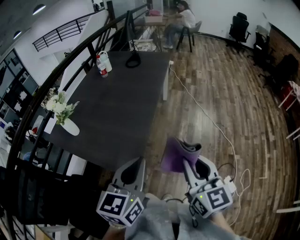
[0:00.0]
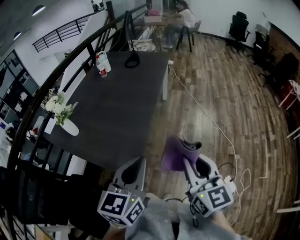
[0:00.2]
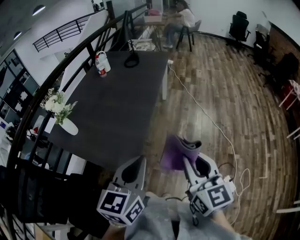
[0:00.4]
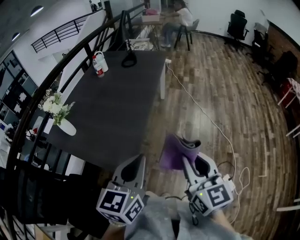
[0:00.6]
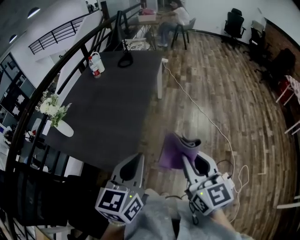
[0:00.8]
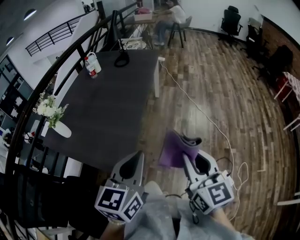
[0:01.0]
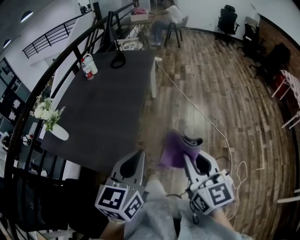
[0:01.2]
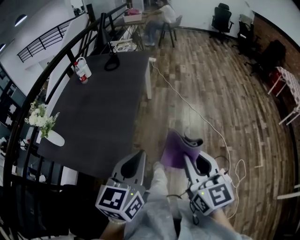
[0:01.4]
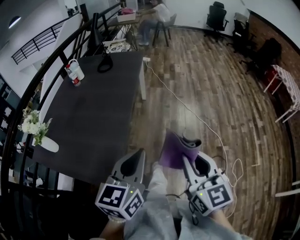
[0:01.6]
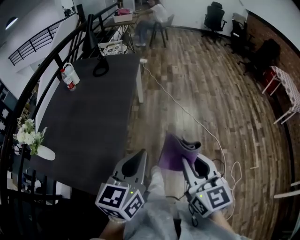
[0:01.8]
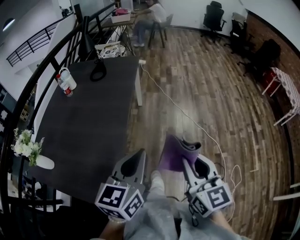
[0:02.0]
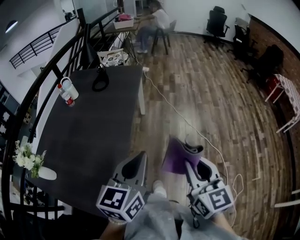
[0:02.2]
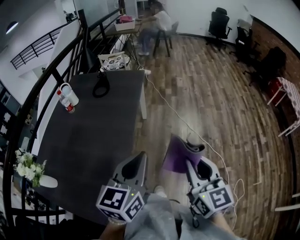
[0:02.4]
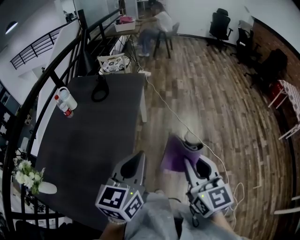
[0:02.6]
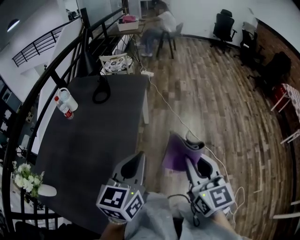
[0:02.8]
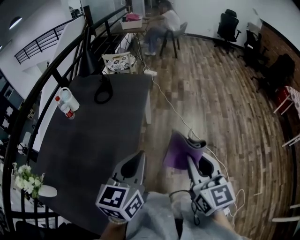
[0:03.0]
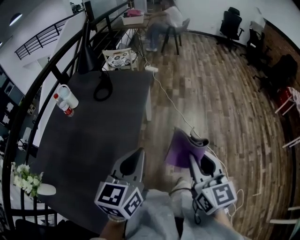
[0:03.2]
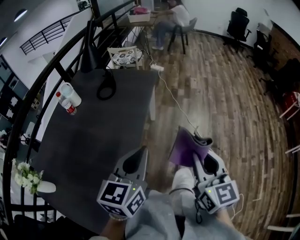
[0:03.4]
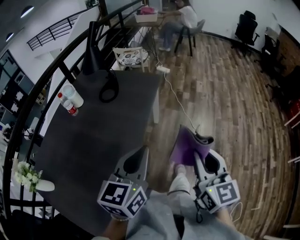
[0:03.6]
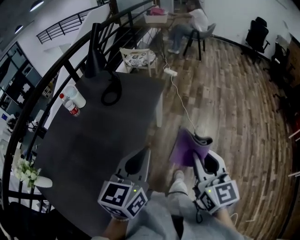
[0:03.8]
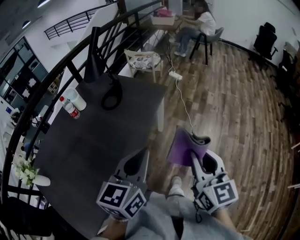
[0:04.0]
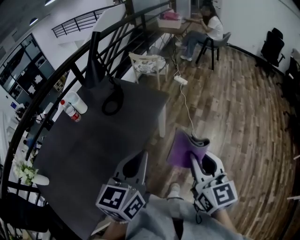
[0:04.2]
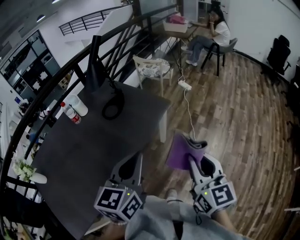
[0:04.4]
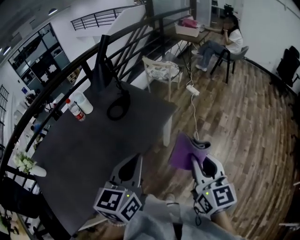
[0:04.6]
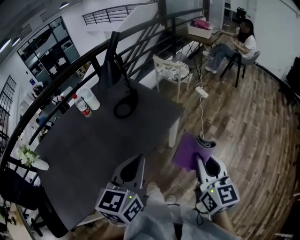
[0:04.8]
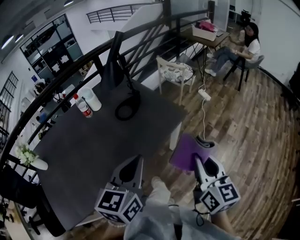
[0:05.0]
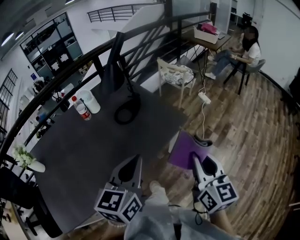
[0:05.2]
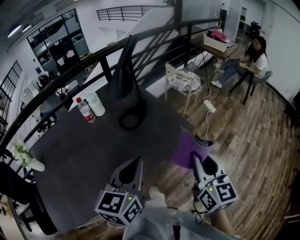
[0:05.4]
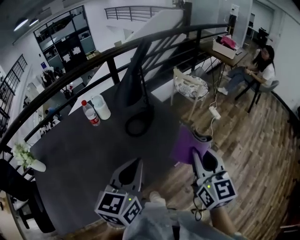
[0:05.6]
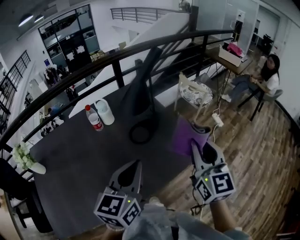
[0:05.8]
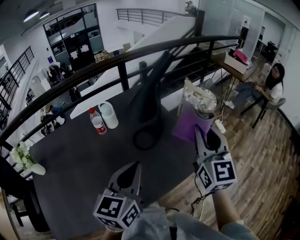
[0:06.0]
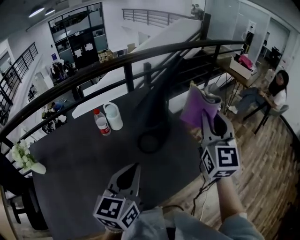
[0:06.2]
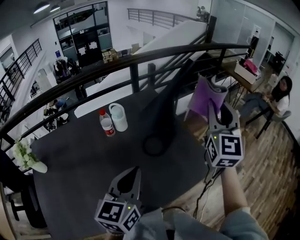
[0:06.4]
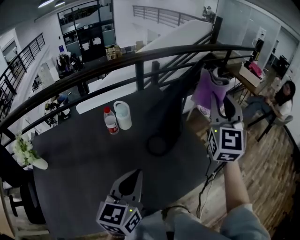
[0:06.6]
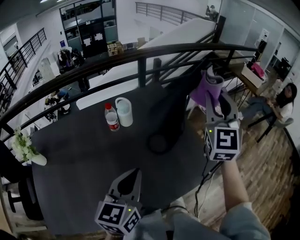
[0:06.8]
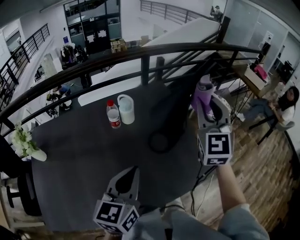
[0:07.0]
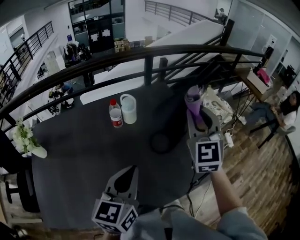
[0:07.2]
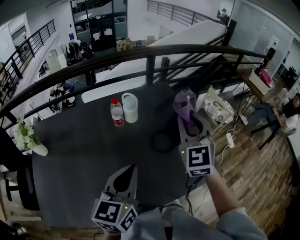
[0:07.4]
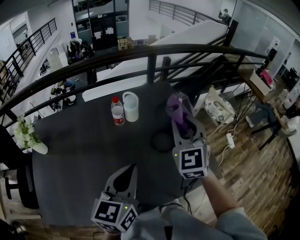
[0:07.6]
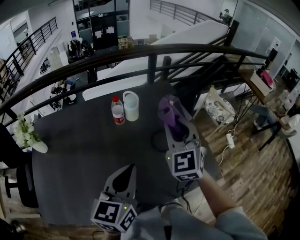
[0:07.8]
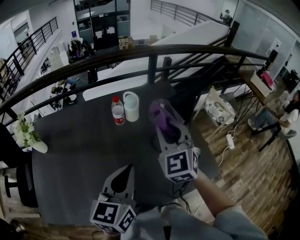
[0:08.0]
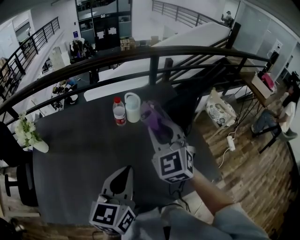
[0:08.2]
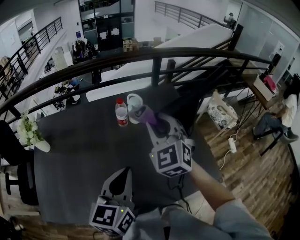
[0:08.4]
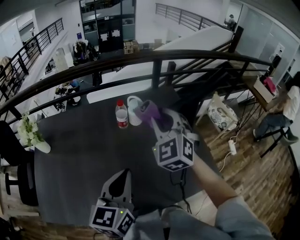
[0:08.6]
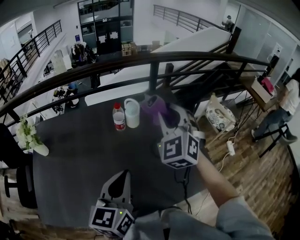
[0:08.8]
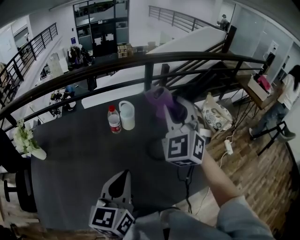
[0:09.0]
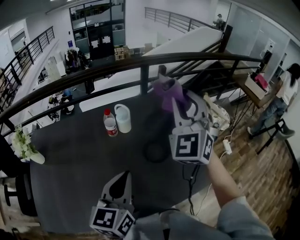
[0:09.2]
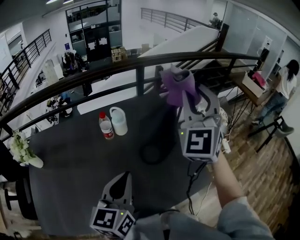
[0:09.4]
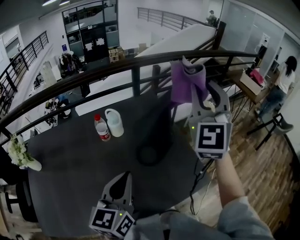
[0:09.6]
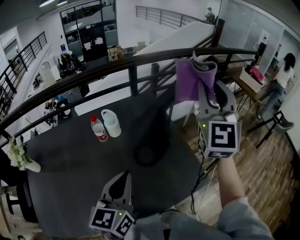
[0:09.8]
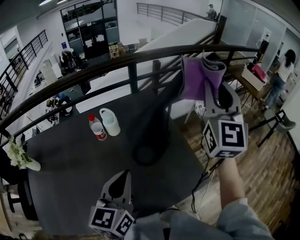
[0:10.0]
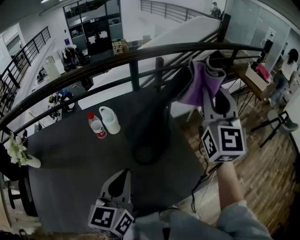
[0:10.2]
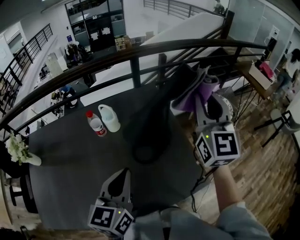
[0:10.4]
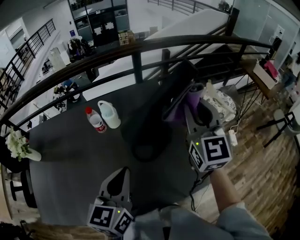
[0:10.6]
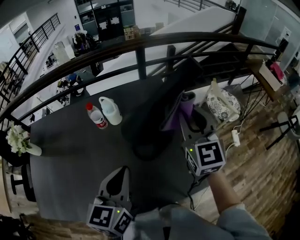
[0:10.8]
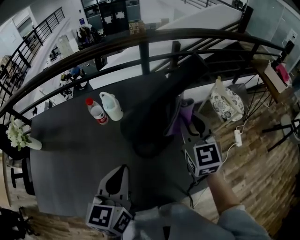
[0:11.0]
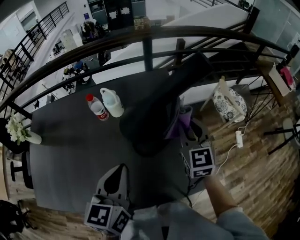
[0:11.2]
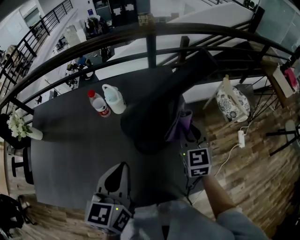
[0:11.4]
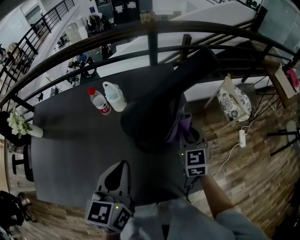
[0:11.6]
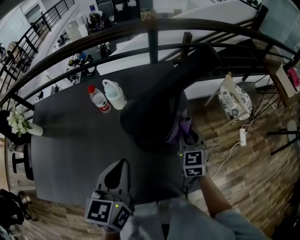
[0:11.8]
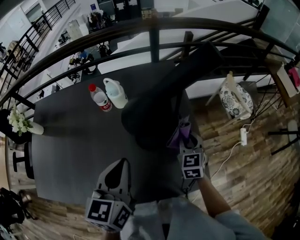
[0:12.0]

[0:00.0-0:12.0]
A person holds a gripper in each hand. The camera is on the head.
0:00.0 to 0:01.6: The right gripper travels to the right by roughly 10 cm; the left gripper is displaced to the right and forward by some 10 cm.
0:01.6 to 0:03.0: The grippers both shift forward by some 35 cm.
0:03.0 to 0:04.4: The two grippers go approximately 25 cm forward. The right gripper turns by some 20 degrees. The left gripper rotates approximately 30 degrees.
0:04.4 to 0:06.0: The left gripper travels forward and to the left by approximately 25 cm, and swivels some 20 degrees. The right gripper moves forward, some 40 cm, and turns by roughly 20 degrees.
0:06.0 to 0:07.6: The right gripper travels to the left and forward by about 20 cm, and turns by roughly 30 degrees, while the left gripper shifts about 10 cm to the left.
0:07.6 to 0:09.0: The right gripper travels upward by about 10 cm, moves about 10 cm to the left and comes back, and swivels roughly 20 degrees.
0:09.0 to 0:10.4: The right gripper is displaced to the right by some 20 cm, and rotates roughly 40 degrees, while the left gripper travels to the right and forward by some 10 cm.
0:10.4 to 0:12.0: The right gripper is displaced downward by about 35 cm, and tips its fingers downward by approximately 40 degrees.

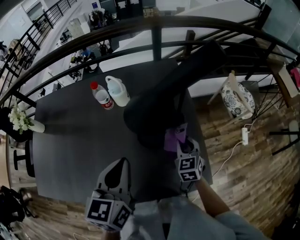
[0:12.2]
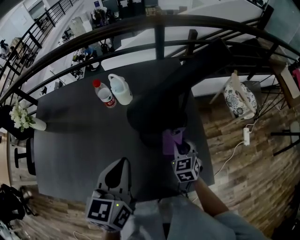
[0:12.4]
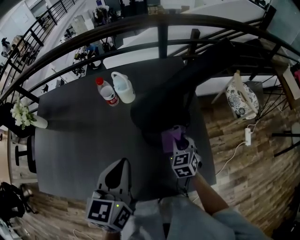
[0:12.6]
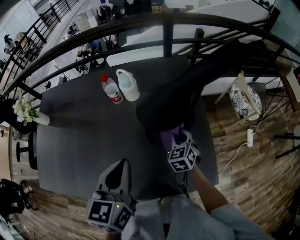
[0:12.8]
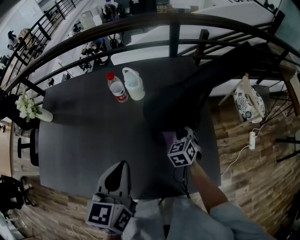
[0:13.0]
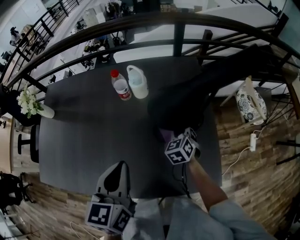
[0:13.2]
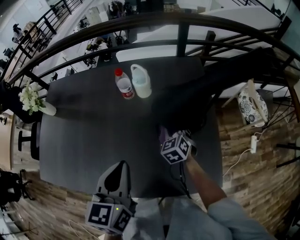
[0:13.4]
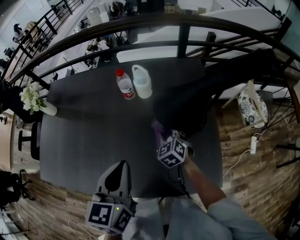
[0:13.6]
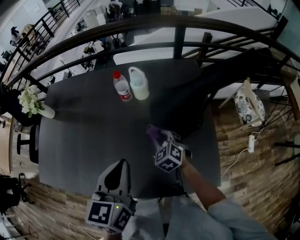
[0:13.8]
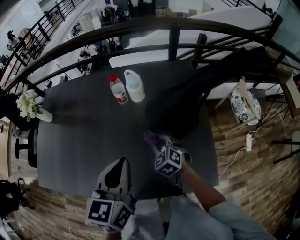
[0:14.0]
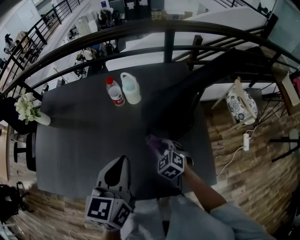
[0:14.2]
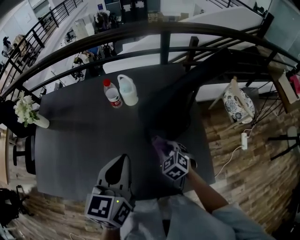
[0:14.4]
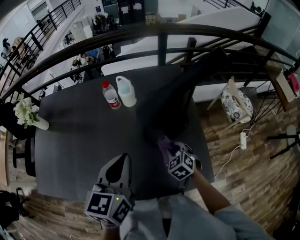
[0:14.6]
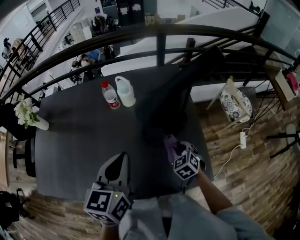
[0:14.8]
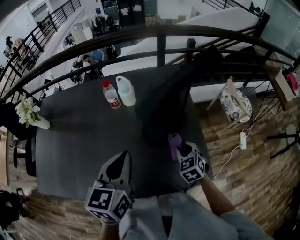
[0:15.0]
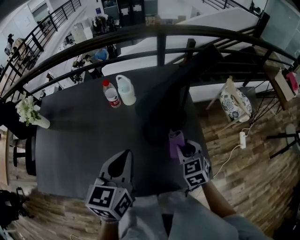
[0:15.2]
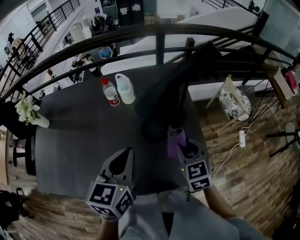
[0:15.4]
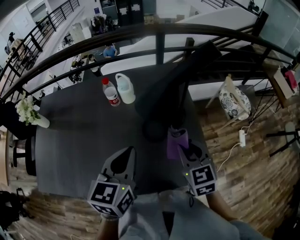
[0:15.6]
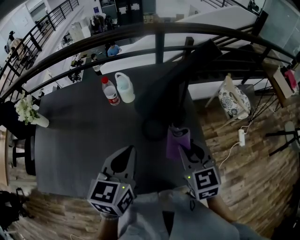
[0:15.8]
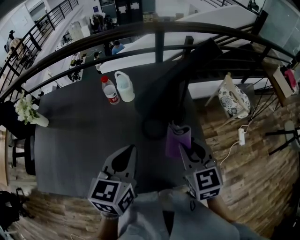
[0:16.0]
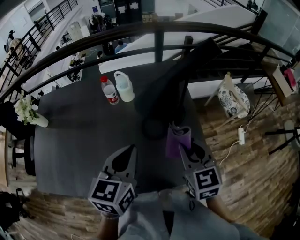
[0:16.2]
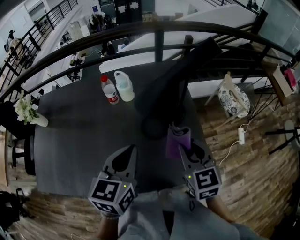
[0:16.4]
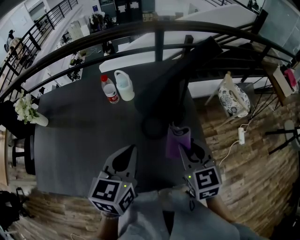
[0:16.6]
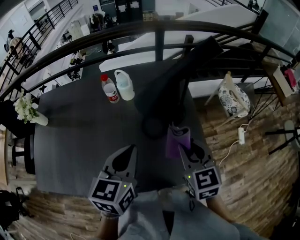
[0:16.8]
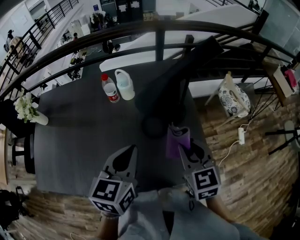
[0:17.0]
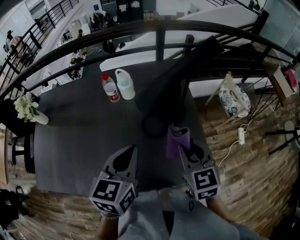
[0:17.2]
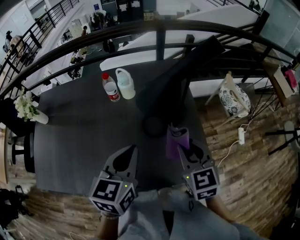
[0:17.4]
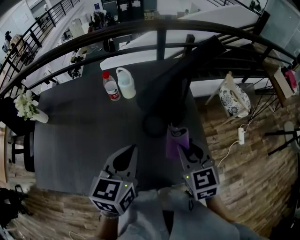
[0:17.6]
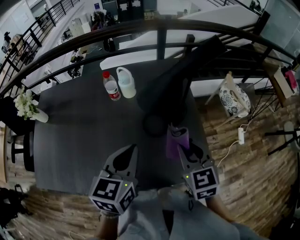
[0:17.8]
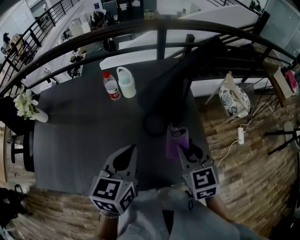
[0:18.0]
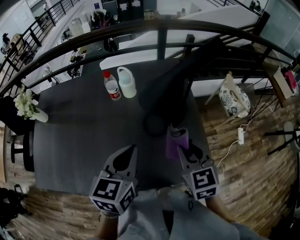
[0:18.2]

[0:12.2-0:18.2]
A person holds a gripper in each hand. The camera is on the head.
0:12.2 to 0:13.8: The right gripper travels to the left by roughly 20 cm, and changes its angle by approximately 30 degrees. The left gripper moves to the left, some 5 cm.
0:13.8 to 0:15.2: The left gripper heads to the right, covering some 5 cm. Meanwhile the right gripper goes some 20 cm to the right, upward and backward, and changes its angle by about 20 degrees.
0:15.2 to 0:16.6: The right gripper moves upward, approximately 10 cm.
0:16.6 to 0:18.2: There are only small adjustments of the grippers.

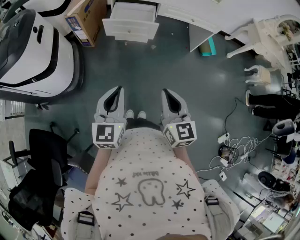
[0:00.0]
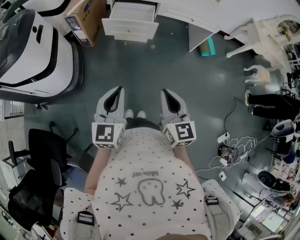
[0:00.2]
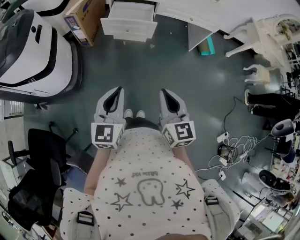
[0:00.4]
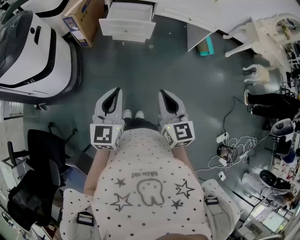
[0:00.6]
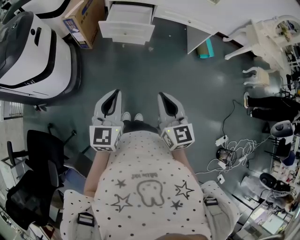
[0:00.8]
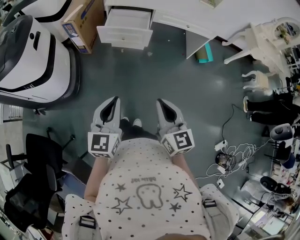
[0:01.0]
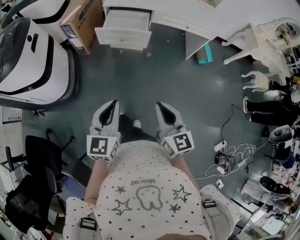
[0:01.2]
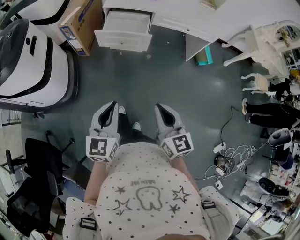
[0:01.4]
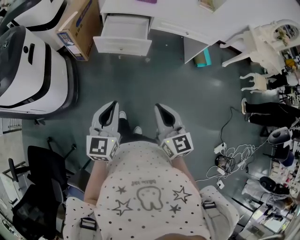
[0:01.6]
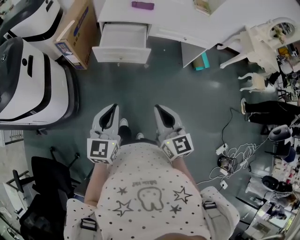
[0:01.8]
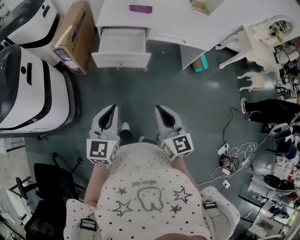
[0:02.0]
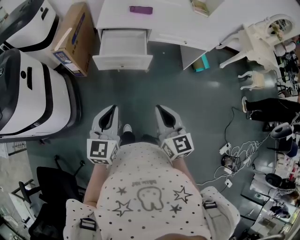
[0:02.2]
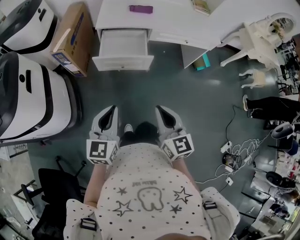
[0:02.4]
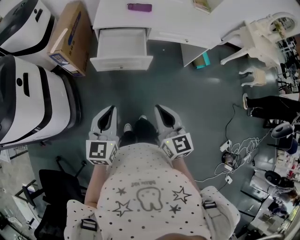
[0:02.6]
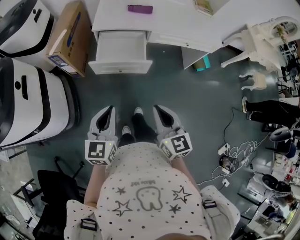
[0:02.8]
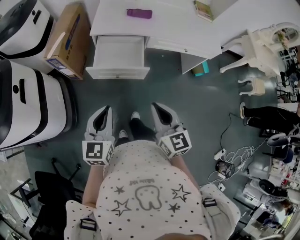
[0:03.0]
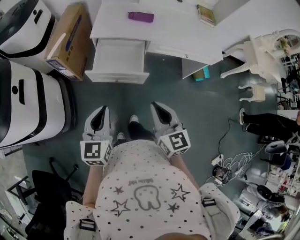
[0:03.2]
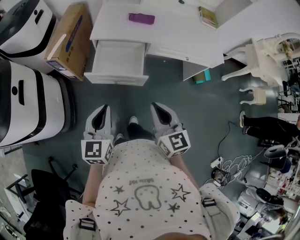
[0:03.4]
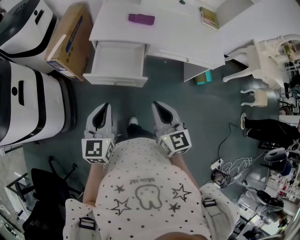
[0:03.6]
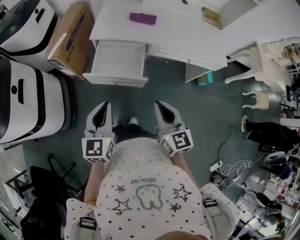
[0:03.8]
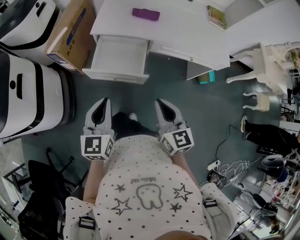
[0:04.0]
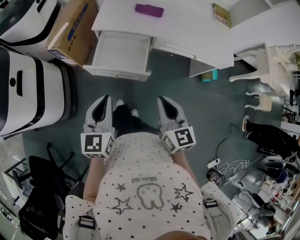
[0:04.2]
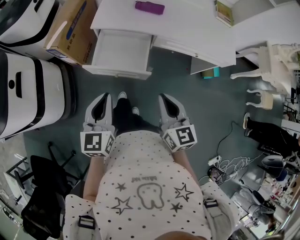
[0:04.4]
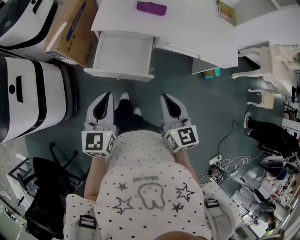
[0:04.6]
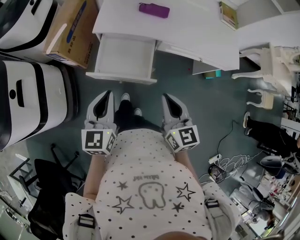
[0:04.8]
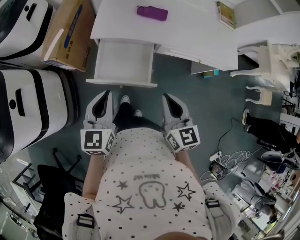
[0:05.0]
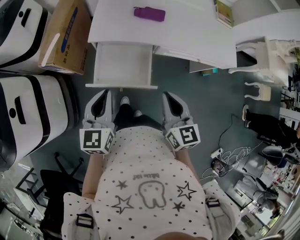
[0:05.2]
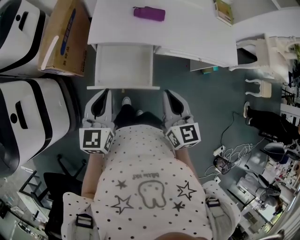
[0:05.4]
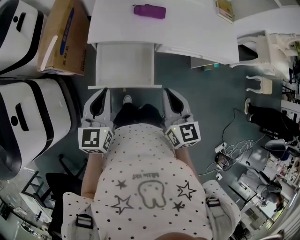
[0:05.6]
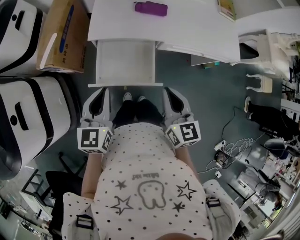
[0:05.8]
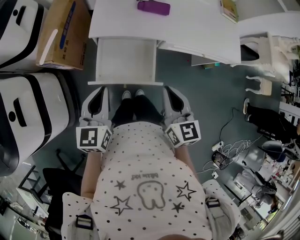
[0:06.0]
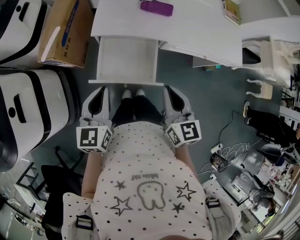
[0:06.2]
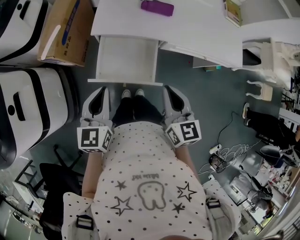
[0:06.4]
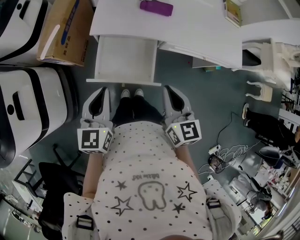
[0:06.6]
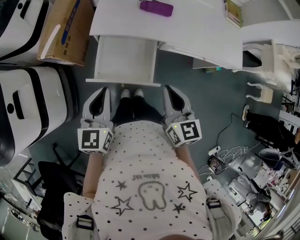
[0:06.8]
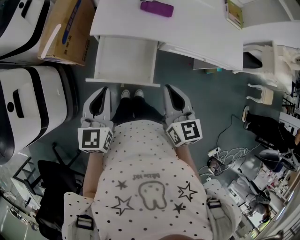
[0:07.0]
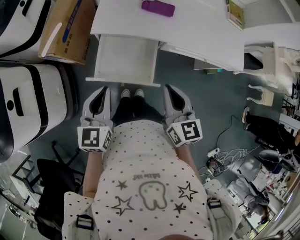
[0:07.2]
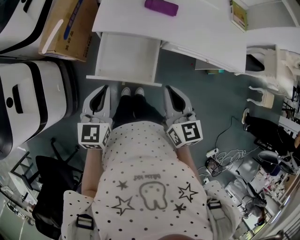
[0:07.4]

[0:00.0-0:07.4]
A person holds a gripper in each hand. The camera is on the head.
0:00.0 to 0:01.4: There are only small adjustments of the grippers.
0:01.4 to 0:03.0: Both grippers move forward, about 25 cm.
0:03.0 to 0:04.4: Both grippers move forward and to the right, approximately 10 cm.
0:04.4 to 0:06.0: The grippers both shift forward and to the left by roughly 15 cm.
0:06.0 to 0:07.4: The grippers stay close to where they were, moving slightly.
